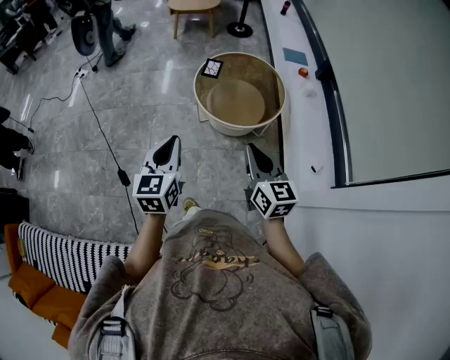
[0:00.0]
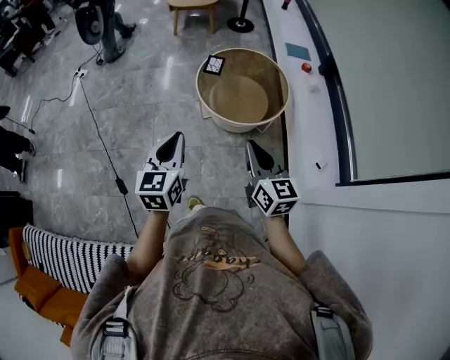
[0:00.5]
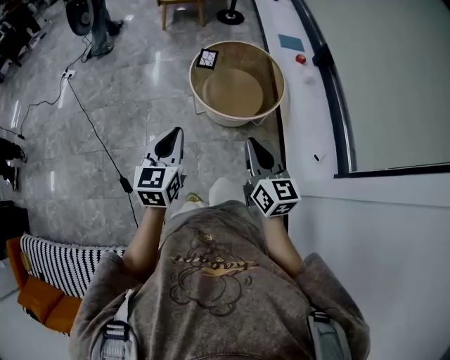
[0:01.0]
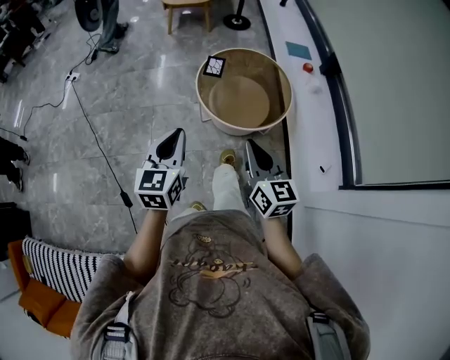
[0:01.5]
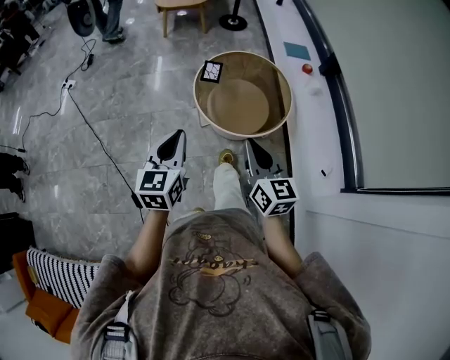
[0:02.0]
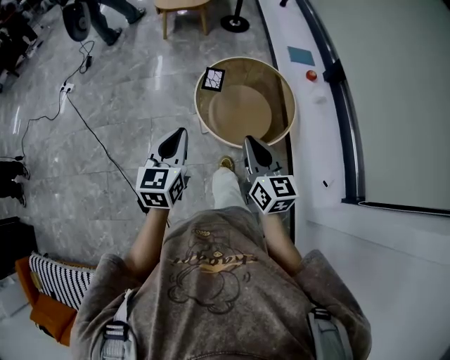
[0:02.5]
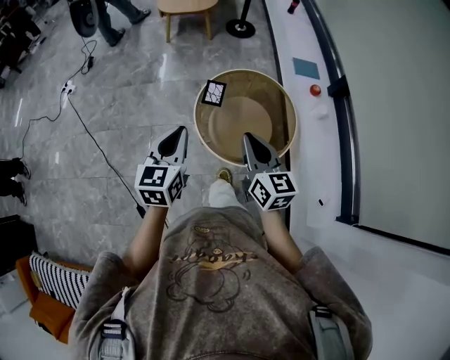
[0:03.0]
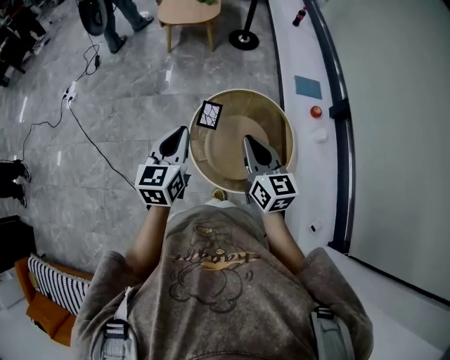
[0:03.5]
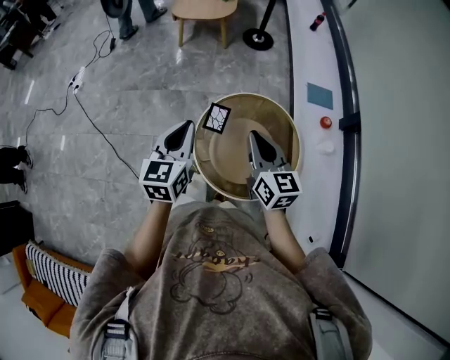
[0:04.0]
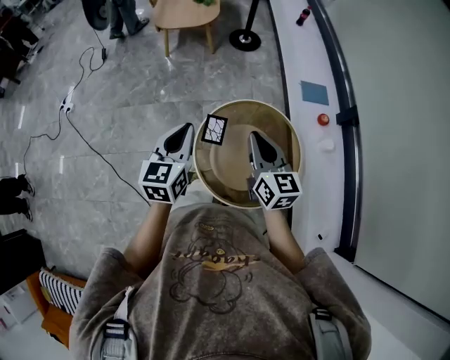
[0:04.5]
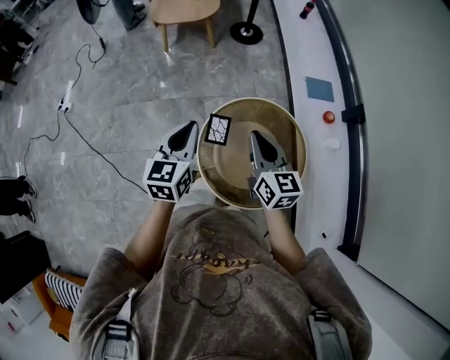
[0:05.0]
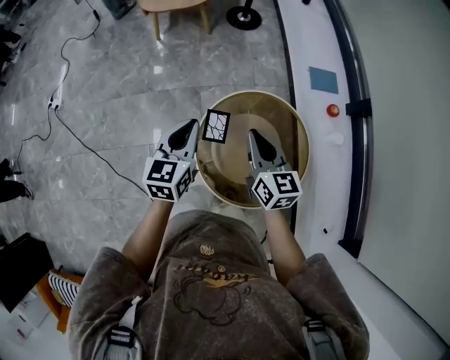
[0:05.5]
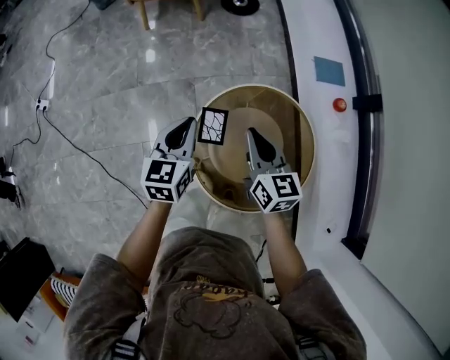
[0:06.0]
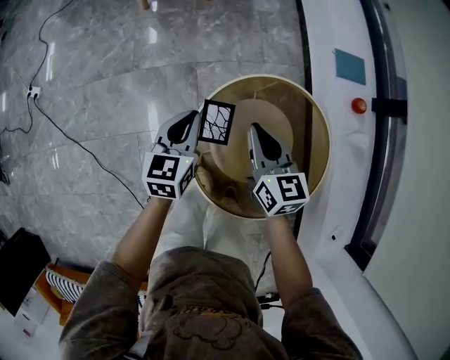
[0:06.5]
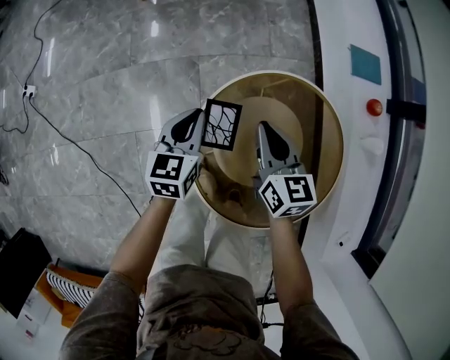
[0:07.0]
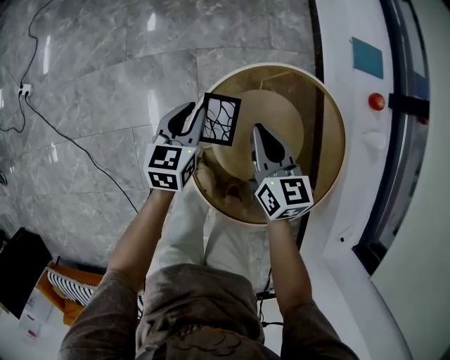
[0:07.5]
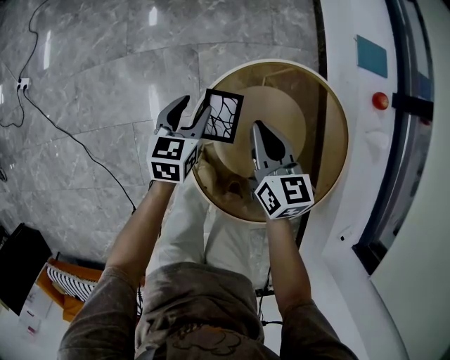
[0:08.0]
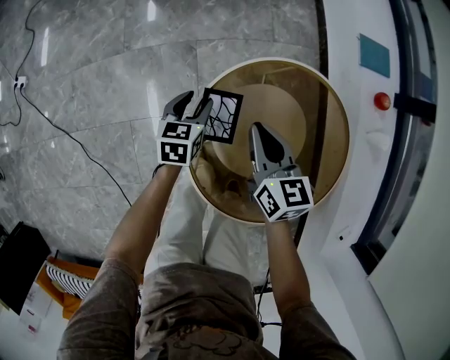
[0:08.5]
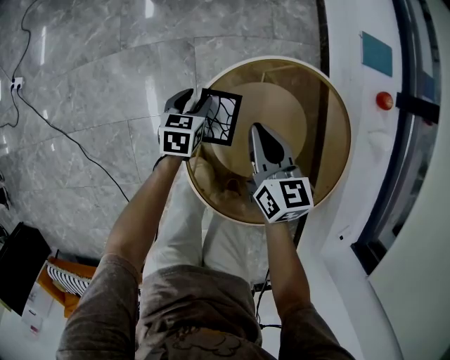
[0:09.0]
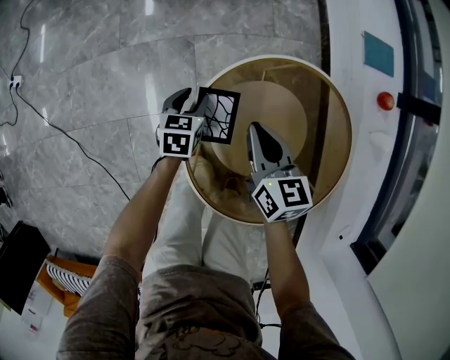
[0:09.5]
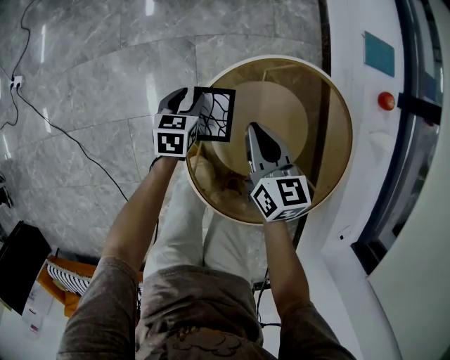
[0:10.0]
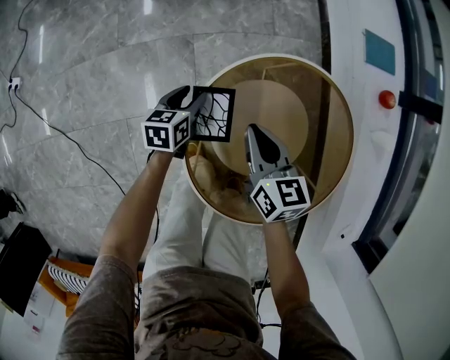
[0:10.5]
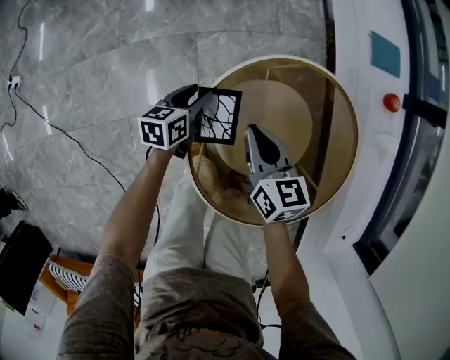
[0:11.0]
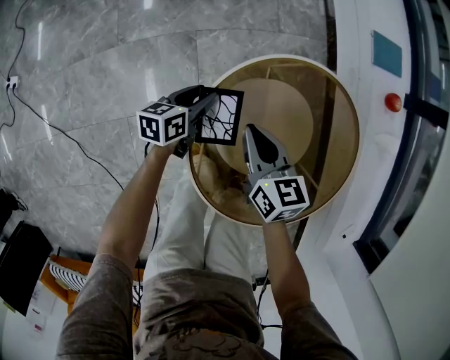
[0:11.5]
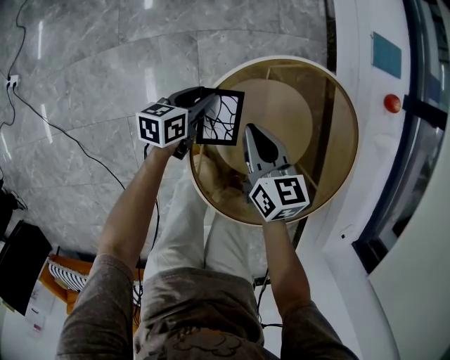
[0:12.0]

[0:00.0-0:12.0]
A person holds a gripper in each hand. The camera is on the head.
0:00.0 to 0:02.0: The right gripper heads forward and to the left, covering some 15 cm. Meanwhile the left gripper shifts about 15 cm forward.
0:02.0 to 0:04.0: The grippers both shift forward by about 35 cm.
0:04.0 to 0:06.0: The two grippers go approximately 25 cm forward and downward.
0:06.0 to 0:08.0: The grippers both shift downward by approximately 20 cm. The left gripper opens its fingers.
0:08.0 to 0:10.0: The left gripper travels downward by approximately 10 cm.
0:10.0 to 0:12.0: The left gripper changes its angle by approximately 30 degrees.

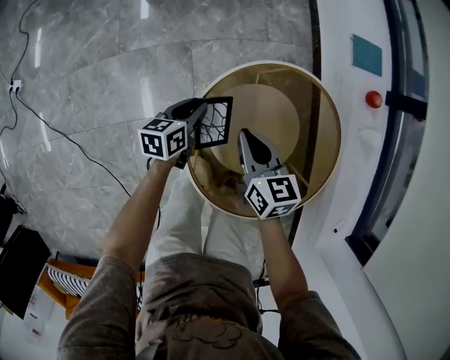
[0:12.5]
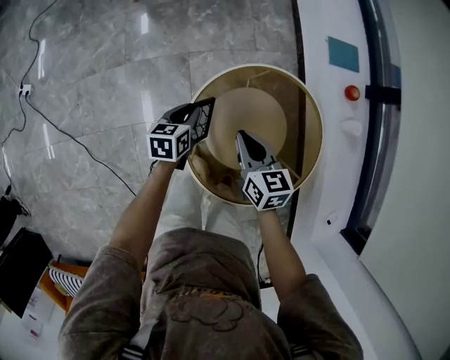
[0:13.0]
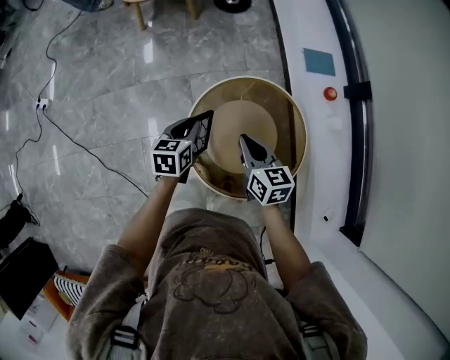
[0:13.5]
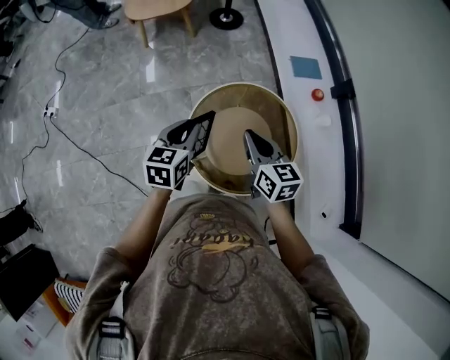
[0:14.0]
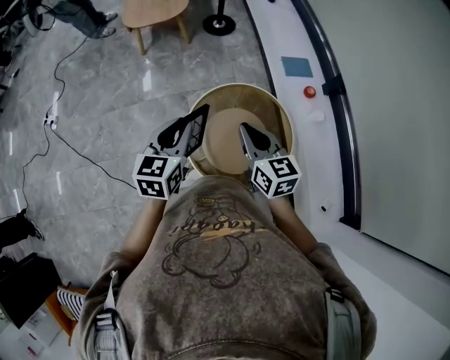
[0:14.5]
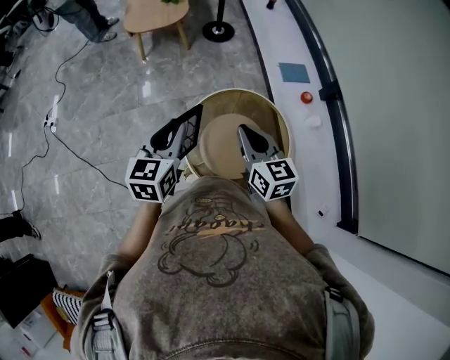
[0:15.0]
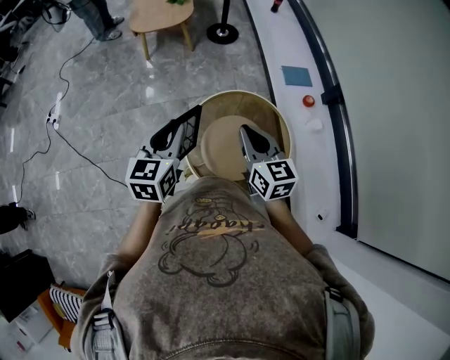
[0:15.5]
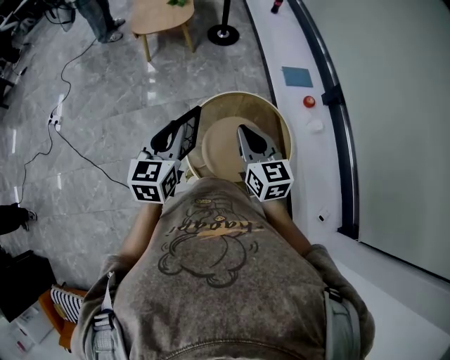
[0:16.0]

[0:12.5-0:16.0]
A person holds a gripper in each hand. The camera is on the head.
0:12.5 to 0:14.5: The grippers both shift upward and backward by about 40 cm. The left gripper swivels approximately 30 degrees.
0:14.5 to 0:16.0: The grippers move only a little.

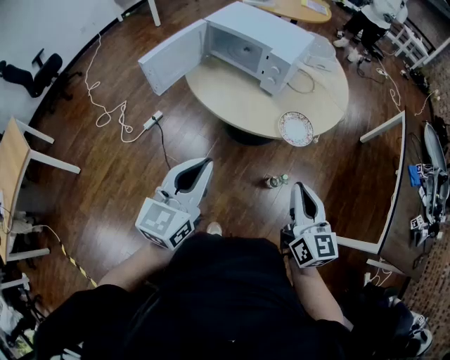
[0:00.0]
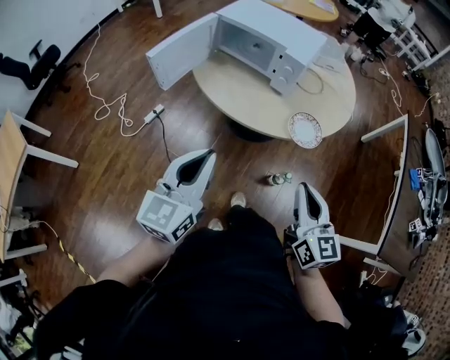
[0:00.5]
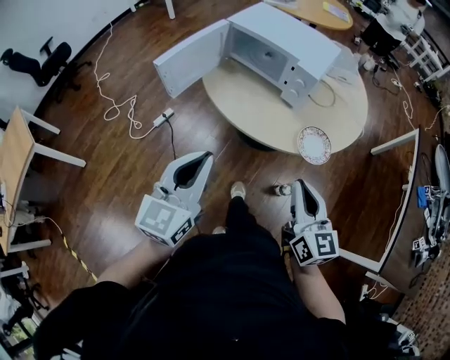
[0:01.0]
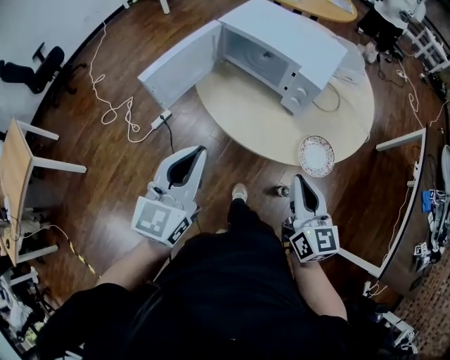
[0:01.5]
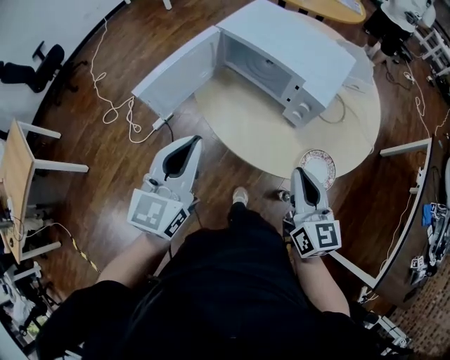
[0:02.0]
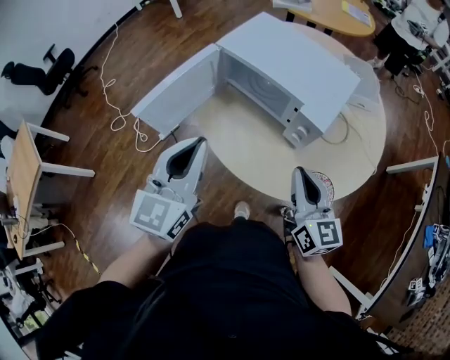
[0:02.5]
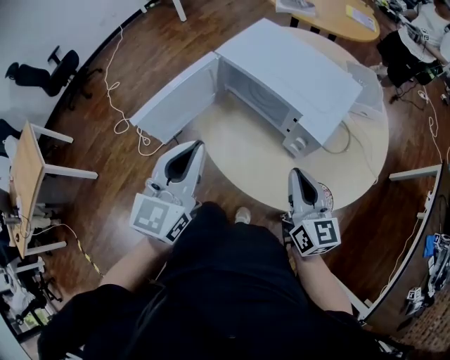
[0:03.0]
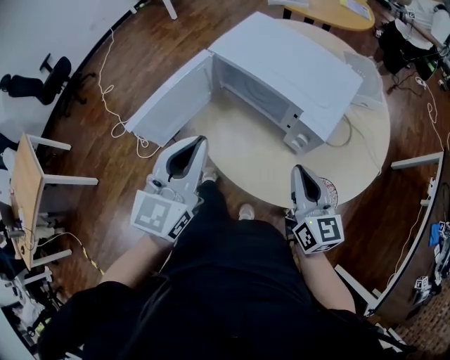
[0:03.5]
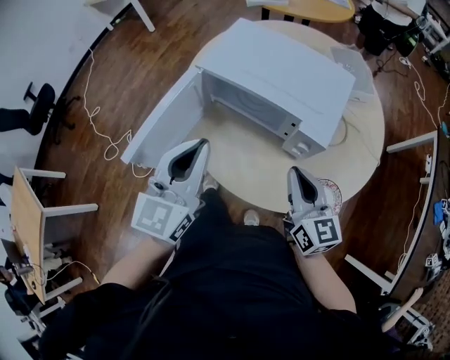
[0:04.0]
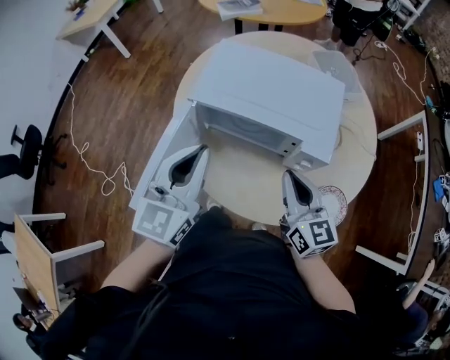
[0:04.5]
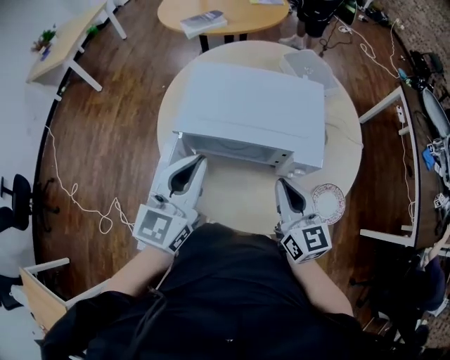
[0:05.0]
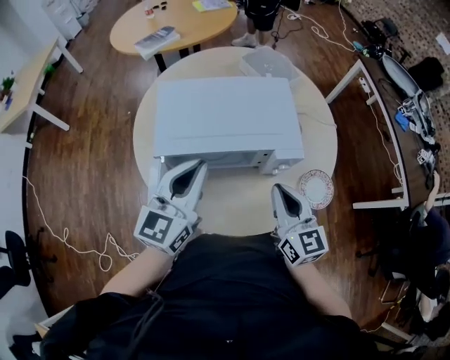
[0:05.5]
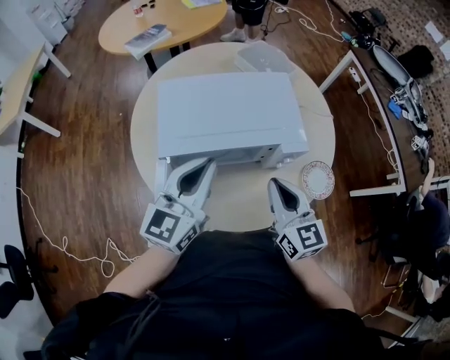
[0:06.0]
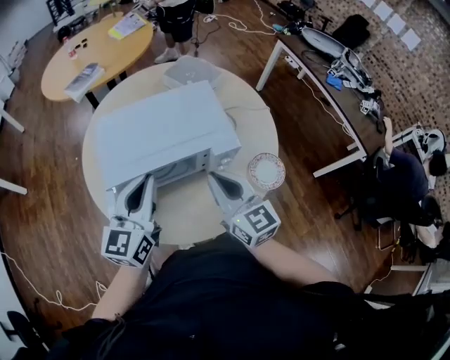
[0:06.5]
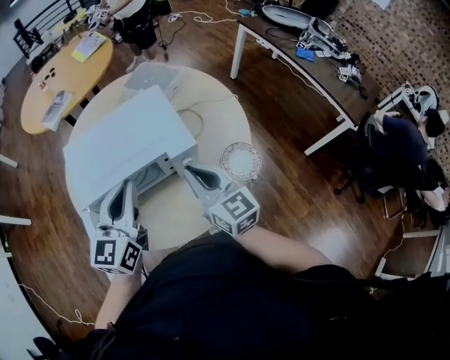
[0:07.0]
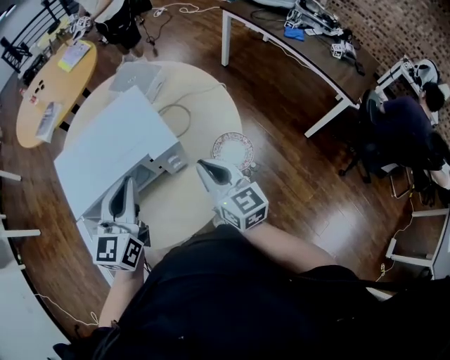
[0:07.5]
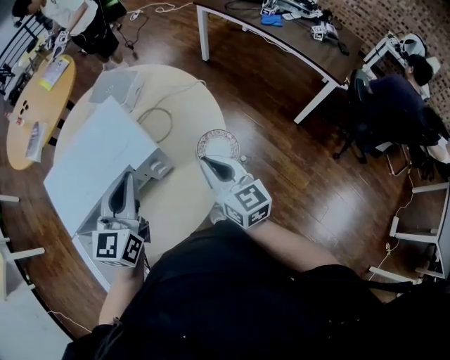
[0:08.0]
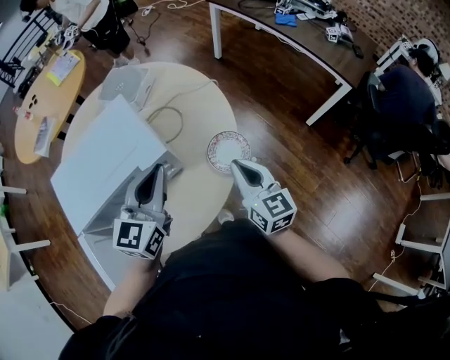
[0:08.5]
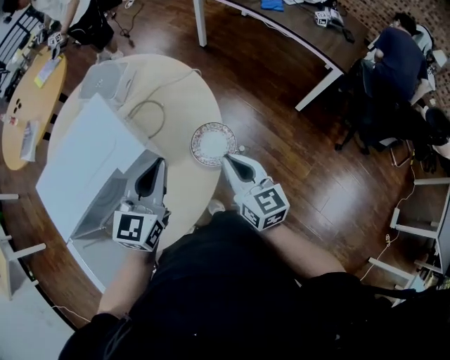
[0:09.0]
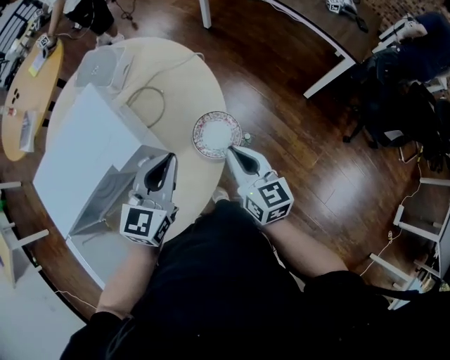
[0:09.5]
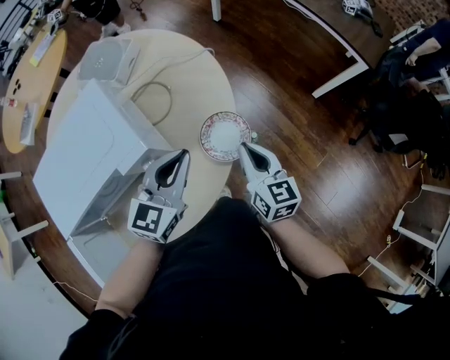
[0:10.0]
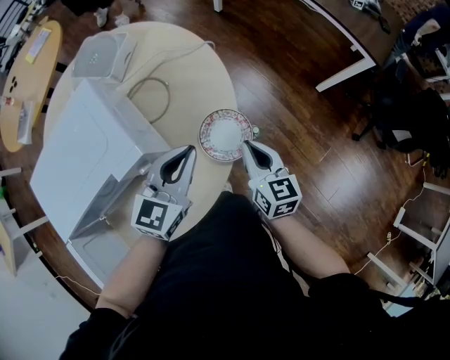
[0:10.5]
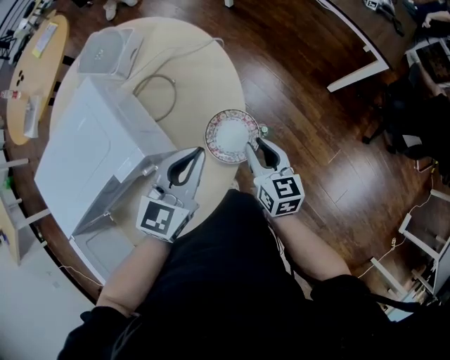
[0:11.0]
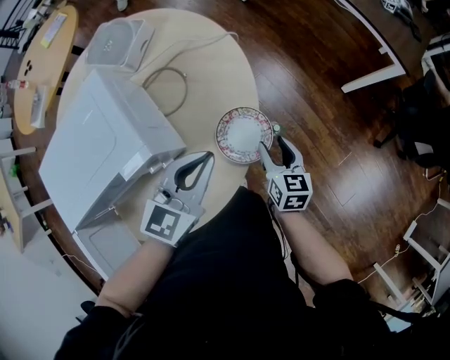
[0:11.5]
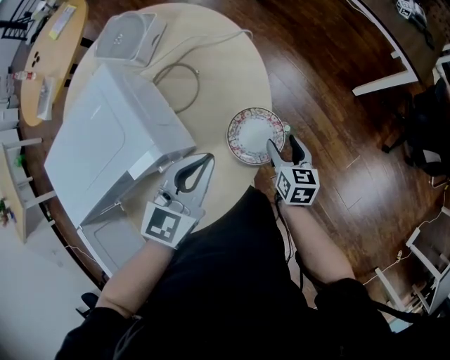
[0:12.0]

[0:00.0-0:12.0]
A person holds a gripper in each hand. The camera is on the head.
0:00.0 to 0:02.0: Both grippers travel together forward, some 20 cm.
0:02.0 to 0:04.0: The two grippers go roughly 15 cm forward.
0:04.0 to 0:06.0: The left gripper ends up roughly 15 cm from where it was, and rotates about 40 degrees; the right gripper ends up some 10 cm from where it was, and rotates roughly 30 degrees.
0:06.0 to 0:08.0: Both grippers travel together to the right, some 15 cm. The right gripper rotates roughly 20 degrees.
0:08.0 to 0:10.0: The left gripper moves to the right and downward, roughly 15 cm, and changes its angle by some 20 degrees. The right gripper heads downward and to the right, covering roughly 15 cm.
0:10.0 to 0:12.0: The right gripper shifts some 15 cm downward, and opens.
